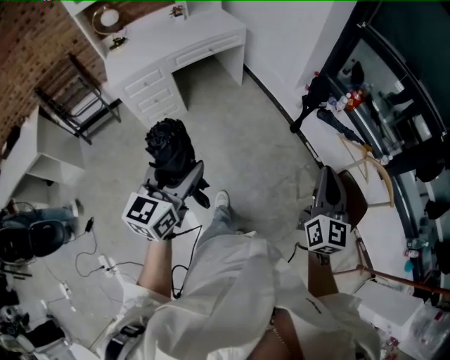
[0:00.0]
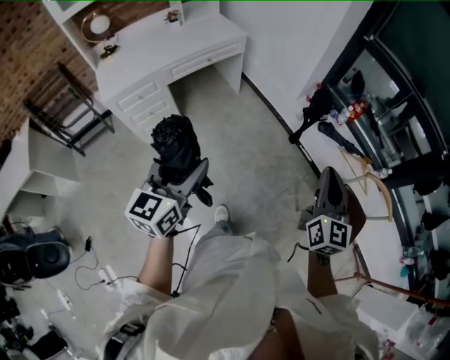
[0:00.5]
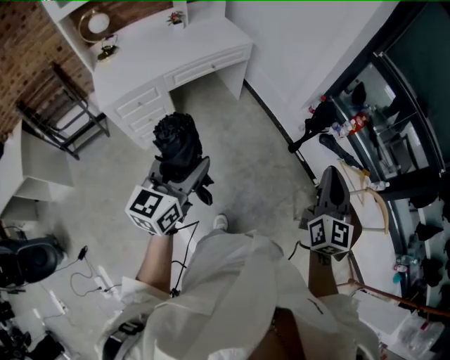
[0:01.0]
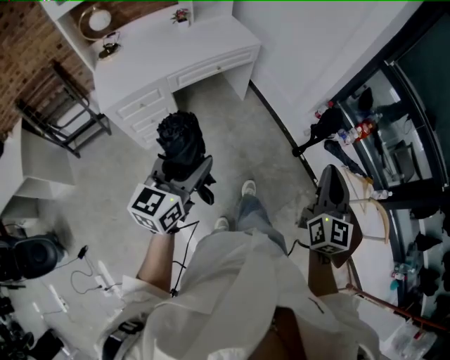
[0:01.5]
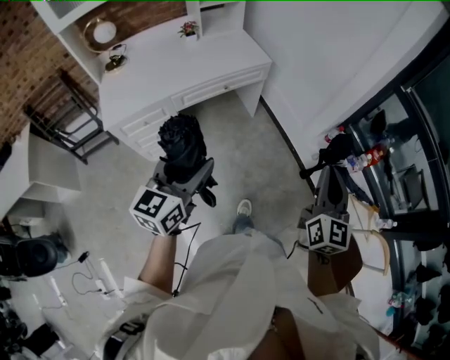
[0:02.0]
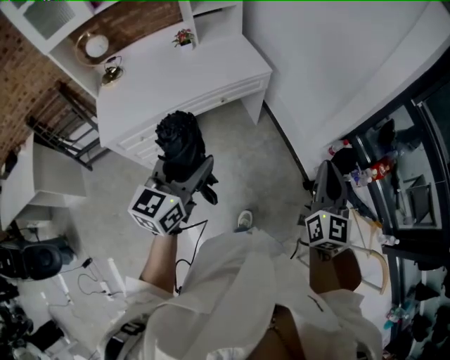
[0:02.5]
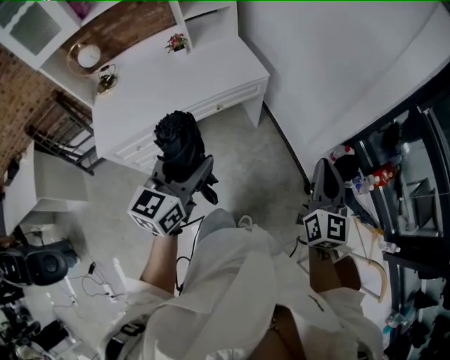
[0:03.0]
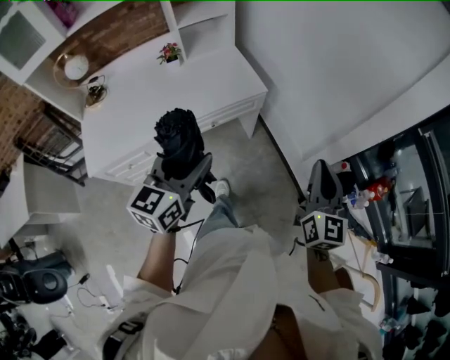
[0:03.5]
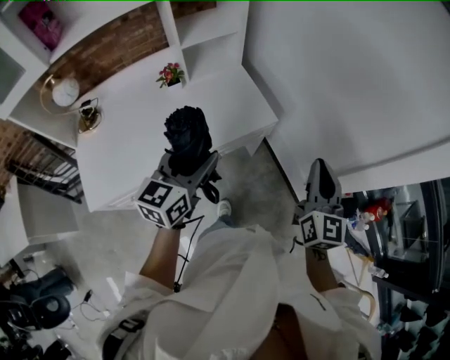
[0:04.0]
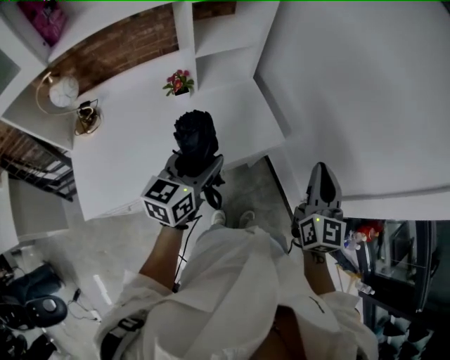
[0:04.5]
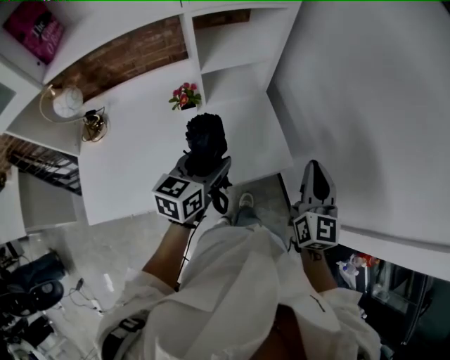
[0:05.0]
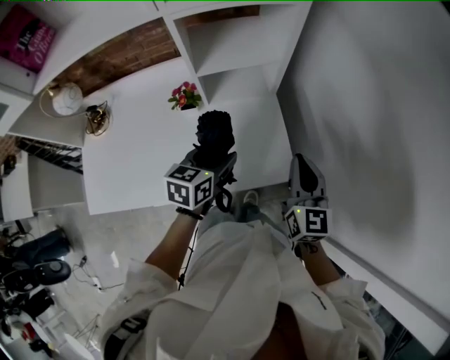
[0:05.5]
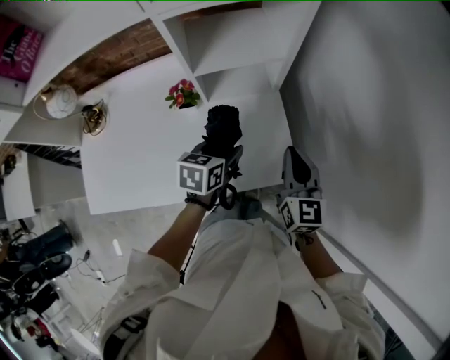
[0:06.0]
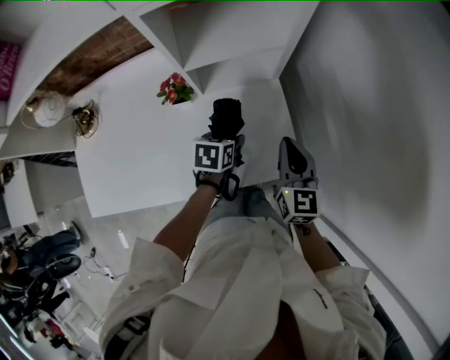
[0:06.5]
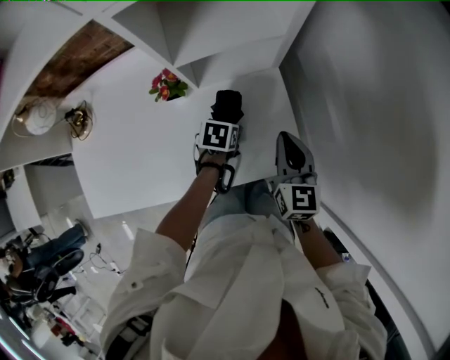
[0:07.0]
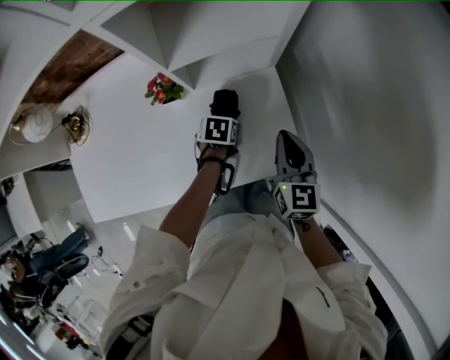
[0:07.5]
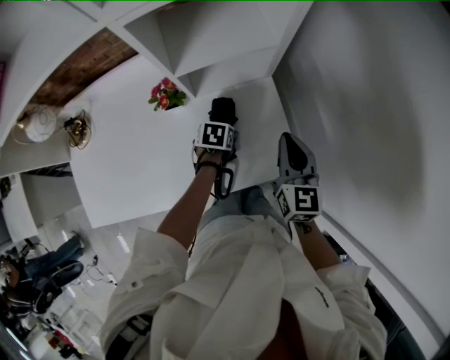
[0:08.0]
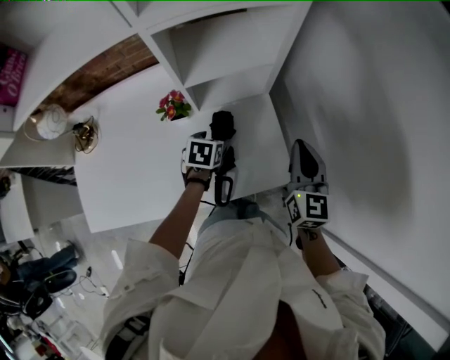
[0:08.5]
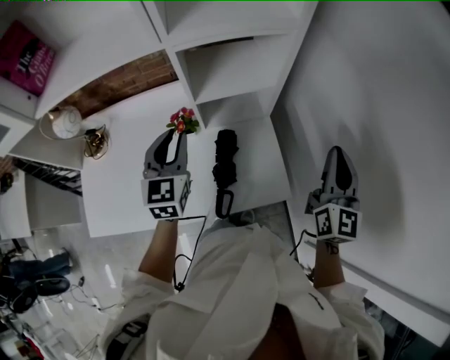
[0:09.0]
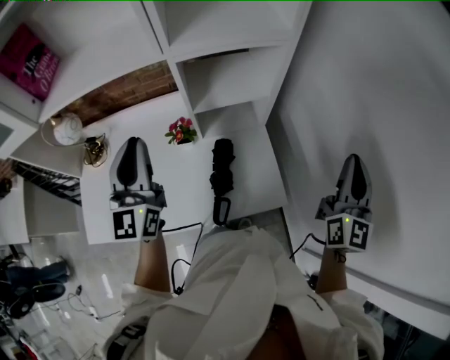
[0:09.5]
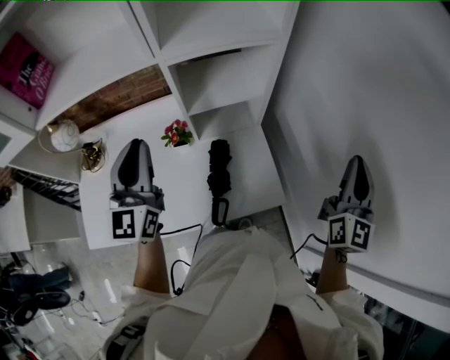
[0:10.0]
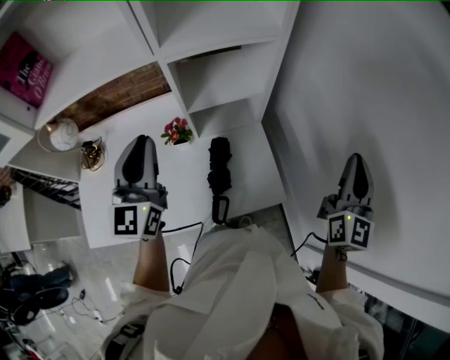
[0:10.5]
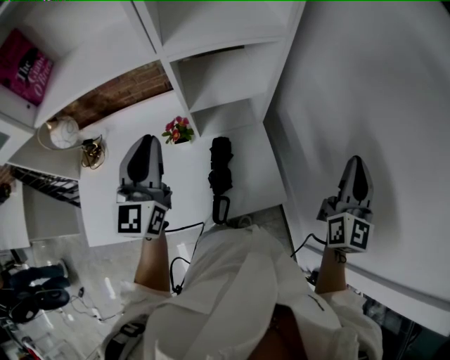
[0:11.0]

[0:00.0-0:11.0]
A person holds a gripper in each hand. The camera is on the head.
0:00.0 to 0:02.0: Both grippers are carried forward and to the left, approximately 40 cm.
0:02.0 to 0:03.5: The grippers both shift forward by roughly 30 cm.
0:03.5 to 0:05.5: The pair of grippers is taken forward, some 50 cm. The right gripper rotates some 20 degrees. Meanwhile the left gripper rotates about 30 degrees.
0:05.5 to 0:07.5: The left gripper goes about 25 cm downward, and points its fingers approximately 40 degrees further downward, while the right gripper goes about 15 cm downward, forward and to the left.
0:07.5 to 0:09.0: The left gripper goes some 35 cm upward, tilts its fingers about 50 degrees upward, and closes up. Meanwhile the right gripper goes roughly 25 cm upward and to the right, and turns by some 30 degrees.
0:09.0 to 0:11.0: The left gripper heads upward, covering some 10 cm, and changes its angle by roughly 20 degrees. The right gripper is displaced to the right by approximately 5 cm.

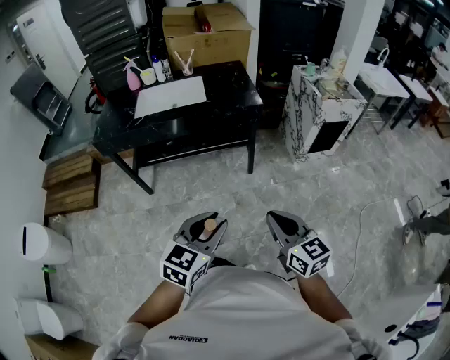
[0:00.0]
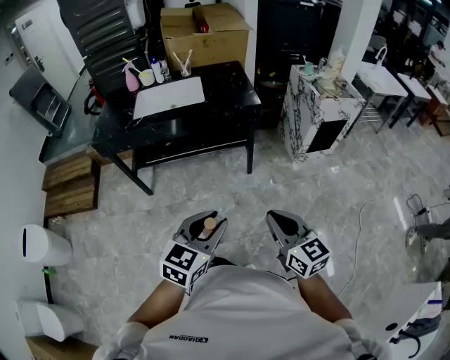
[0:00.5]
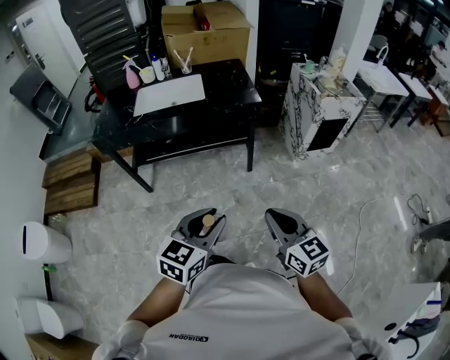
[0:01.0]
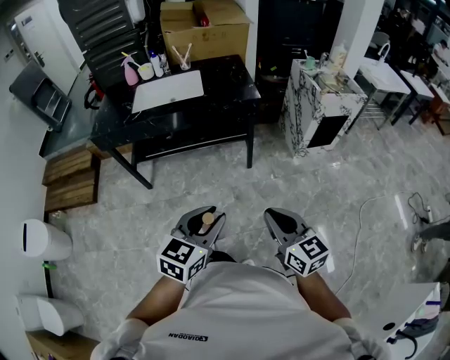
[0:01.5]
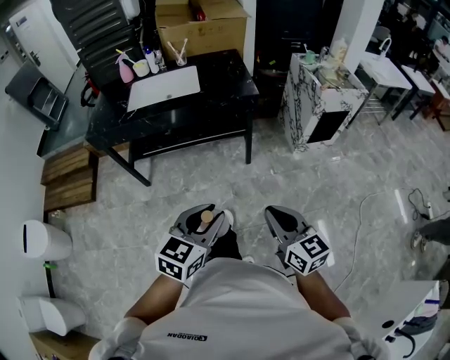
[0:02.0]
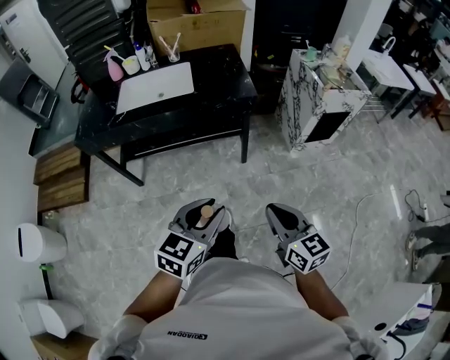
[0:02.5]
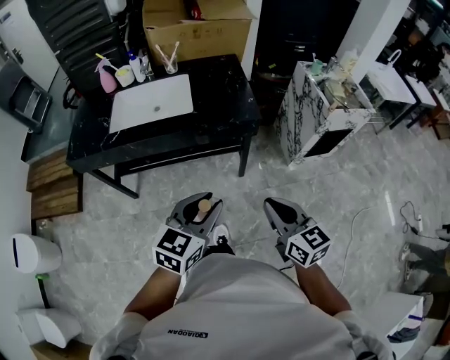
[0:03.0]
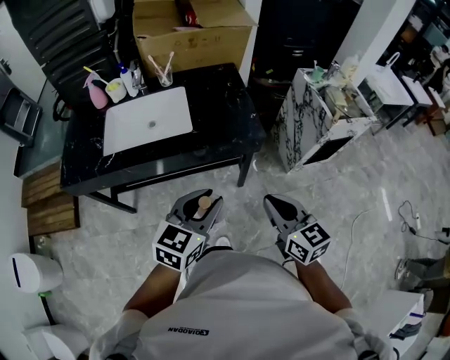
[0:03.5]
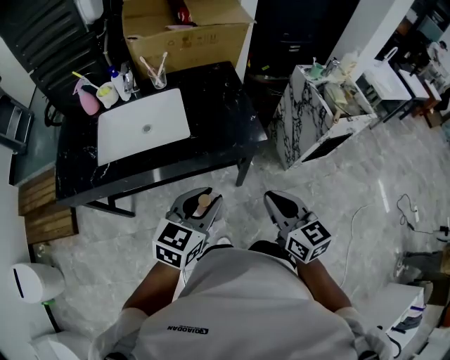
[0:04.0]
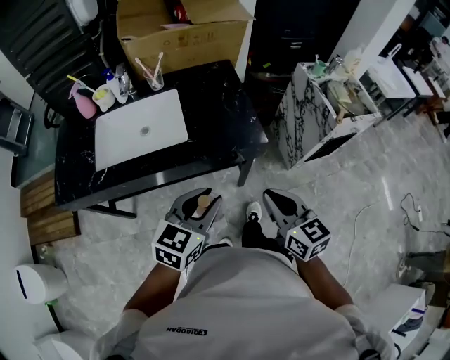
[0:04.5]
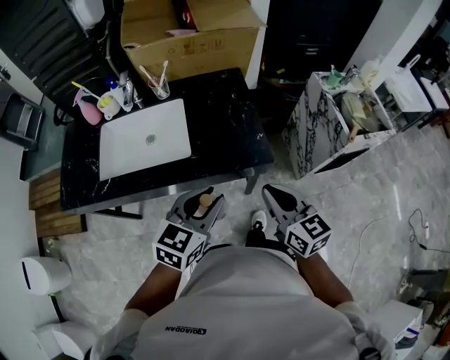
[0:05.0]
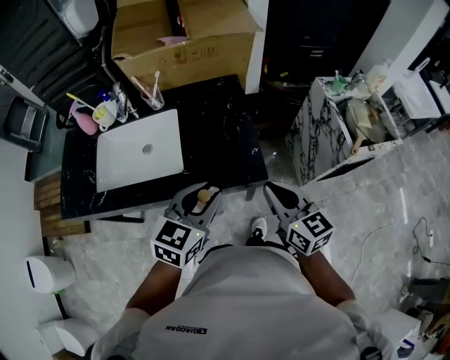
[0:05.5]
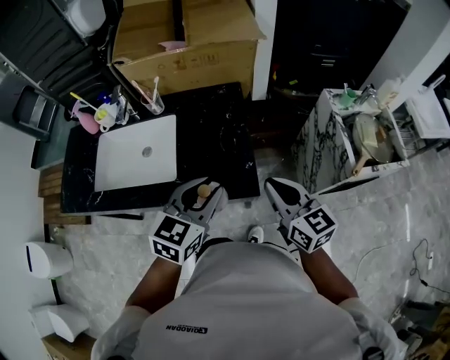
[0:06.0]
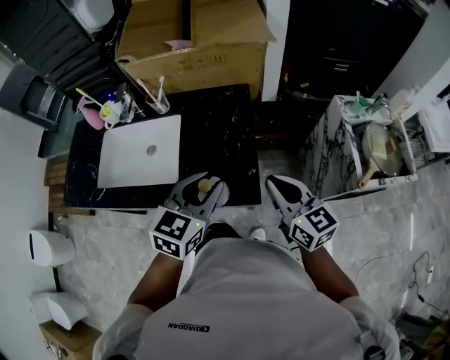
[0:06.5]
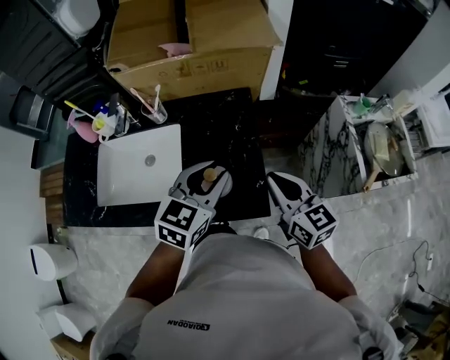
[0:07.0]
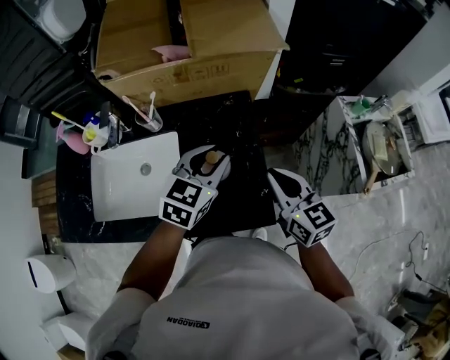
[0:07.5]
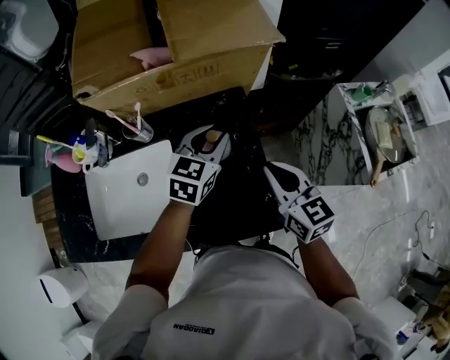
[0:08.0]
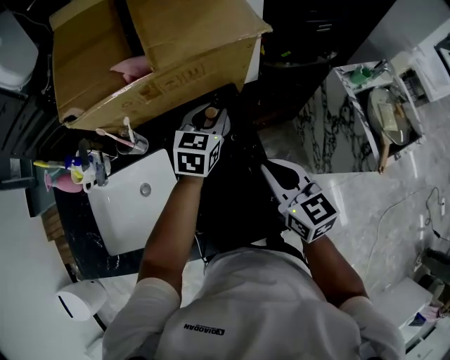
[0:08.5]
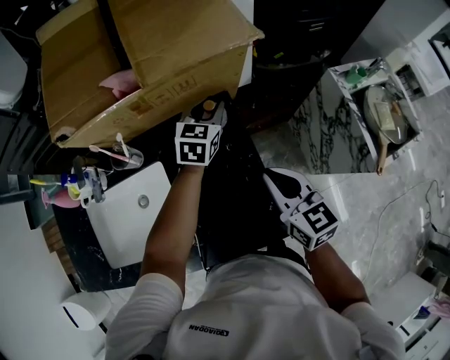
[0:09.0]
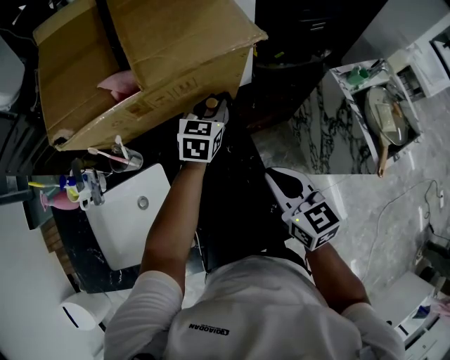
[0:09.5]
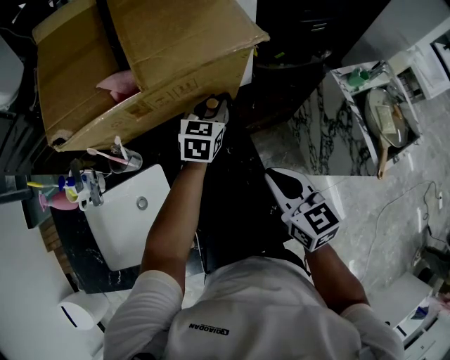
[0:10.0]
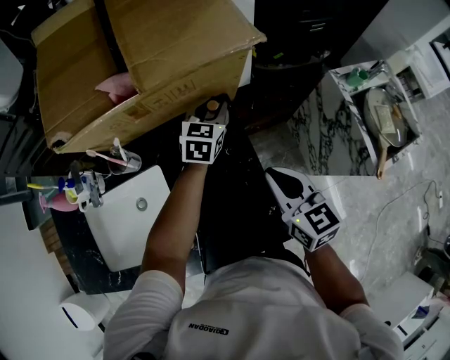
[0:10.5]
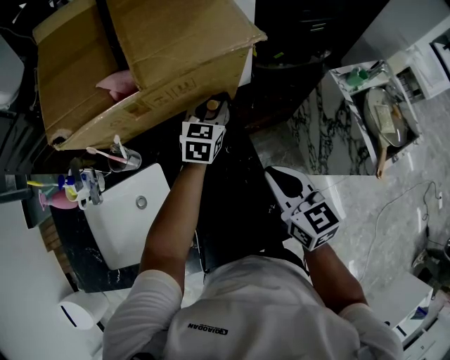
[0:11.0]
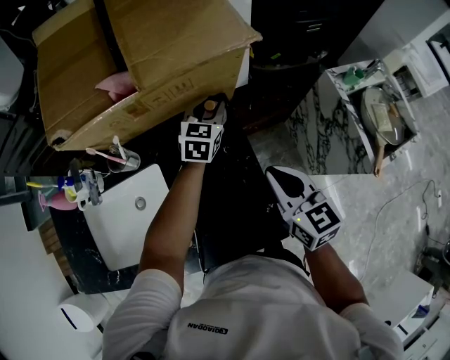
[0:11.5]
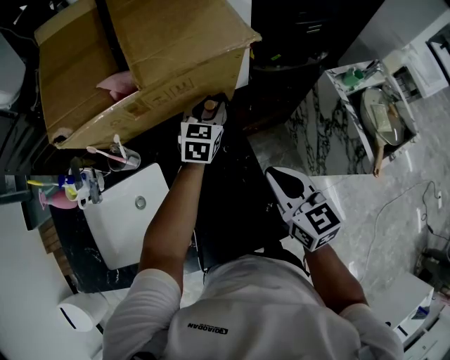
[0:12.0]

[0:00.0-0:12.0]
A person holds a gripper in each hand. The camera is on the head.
0:00.0 to 0:02.0: There are only small adjustments of the grippers.
0:02.0 to 0:04.0: The two grippers travel together, forward, some 40 cm.
0:04.0 to 0:06.0: The left gripper moves forward and to the right, roughly 30 cm. The right gripper shifts approximately 30 cm forward.
0:06.0 to 0:08.0: The left gripper moves forward, approximately 30 cm. Meanwhile the right gripper goes approximately 20 cm forward.
0:08.0 to 0:10.0: The left gripper travels forward and downward by some 20 cm; the right gripper moves roughly 5 cm.
0:10.0 to 0:12.0: The grippers make only small movements.

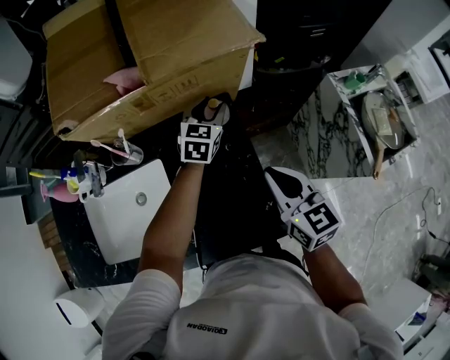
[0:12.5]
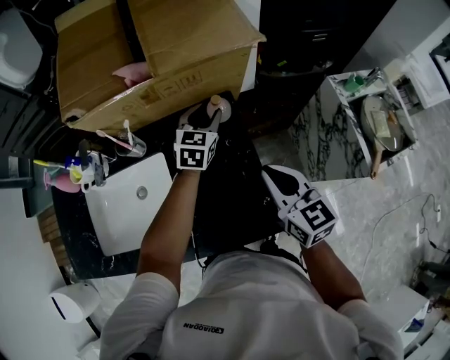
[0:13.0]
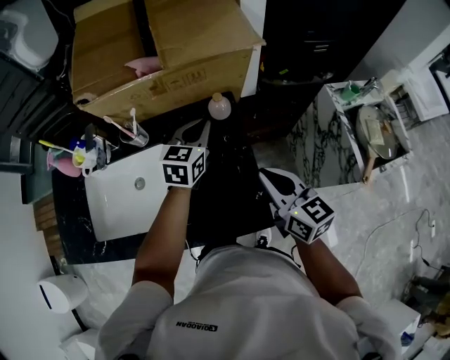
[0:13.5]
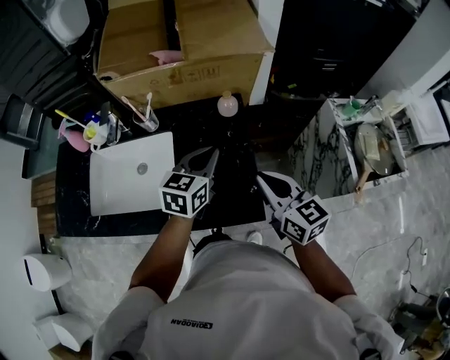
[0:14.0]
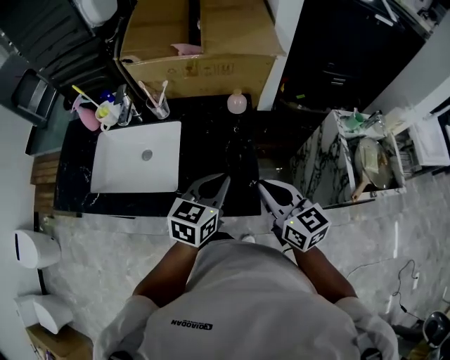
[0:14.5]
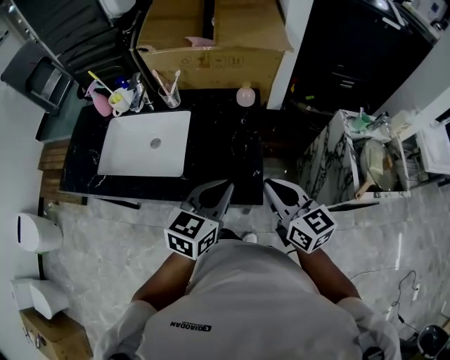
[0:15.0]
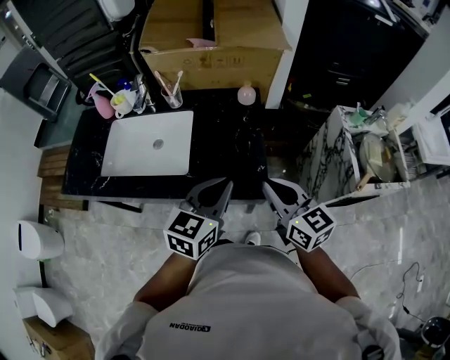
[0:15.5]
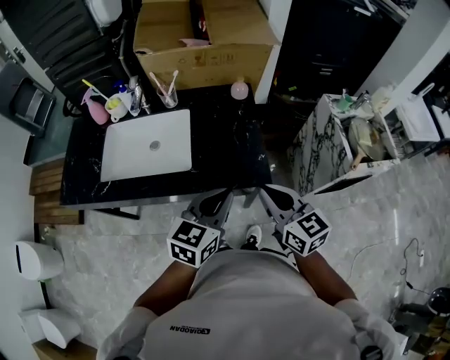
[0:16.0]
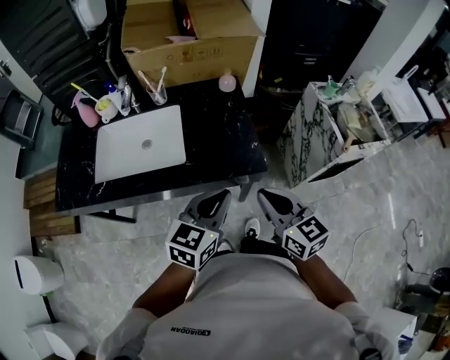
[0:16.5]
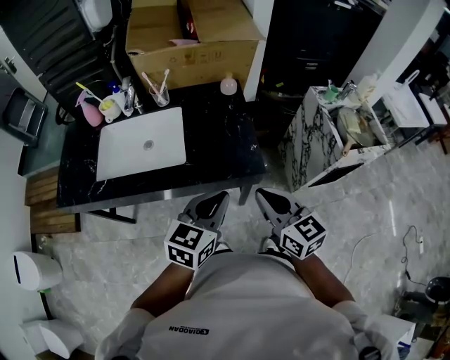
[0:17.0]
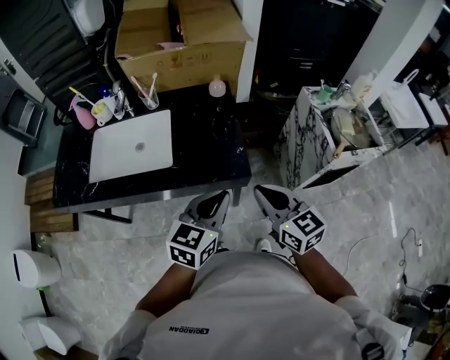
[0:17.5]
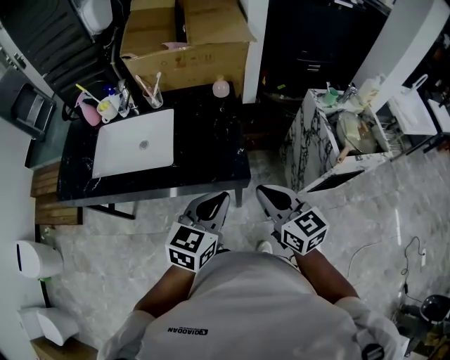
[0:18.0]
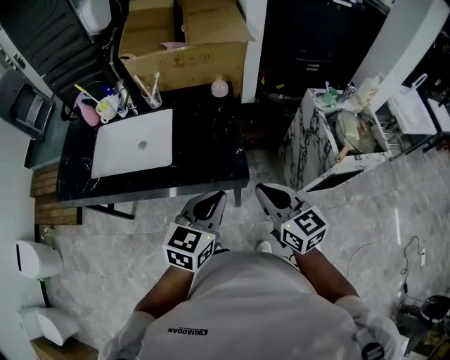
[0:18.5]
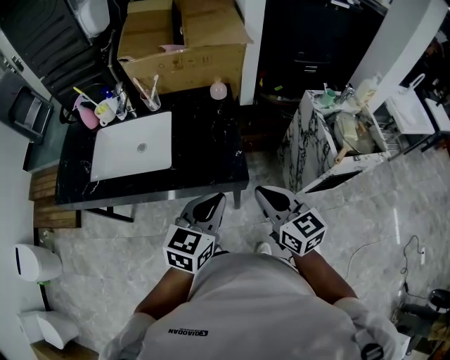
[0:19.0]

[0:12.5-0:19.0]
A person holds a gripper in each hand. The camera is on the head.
0:12.5 to 0:14.5: The right gripper moves backward, approximately 15 cm, and swivels about 20 degrees, while the left gripper travels backward by roughly 35 cm, changes its angle by approximately 20 degrees, and closes.
0:14.5 to 0:17.0: The grippers both shift backward by roughly 20 cm.
0:17.0 to 0:19.0: Both grippers move to the right, approximately 10 cm.
